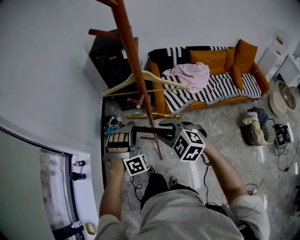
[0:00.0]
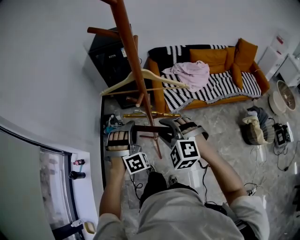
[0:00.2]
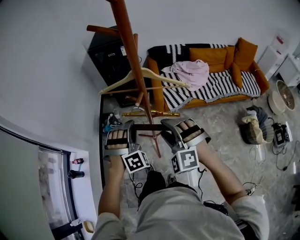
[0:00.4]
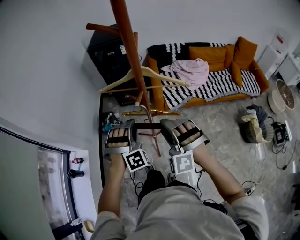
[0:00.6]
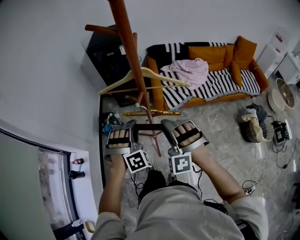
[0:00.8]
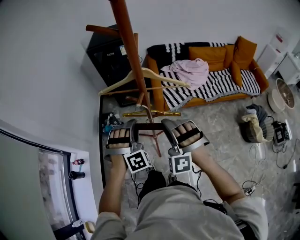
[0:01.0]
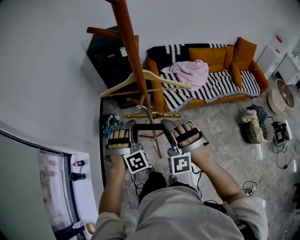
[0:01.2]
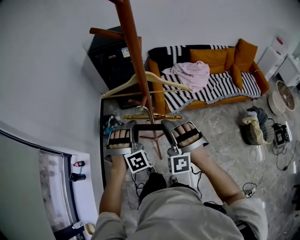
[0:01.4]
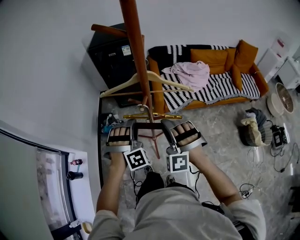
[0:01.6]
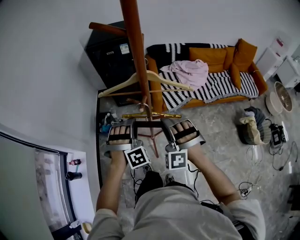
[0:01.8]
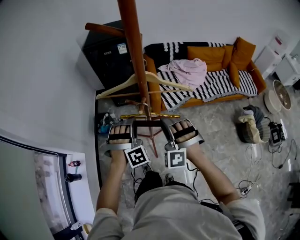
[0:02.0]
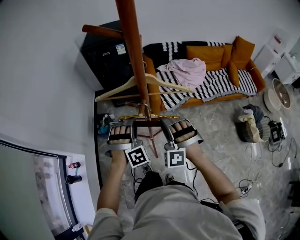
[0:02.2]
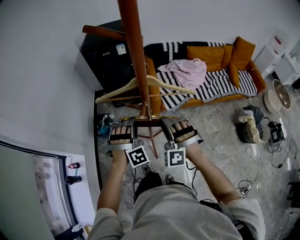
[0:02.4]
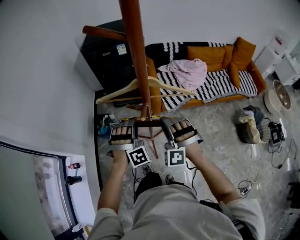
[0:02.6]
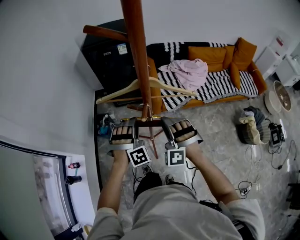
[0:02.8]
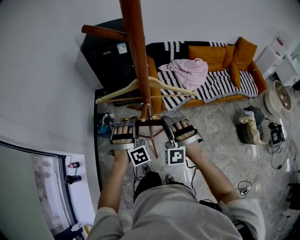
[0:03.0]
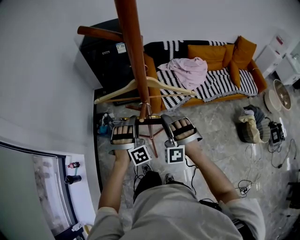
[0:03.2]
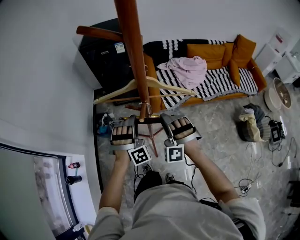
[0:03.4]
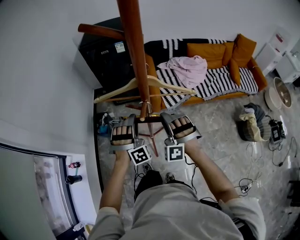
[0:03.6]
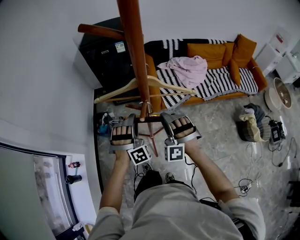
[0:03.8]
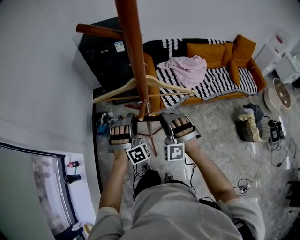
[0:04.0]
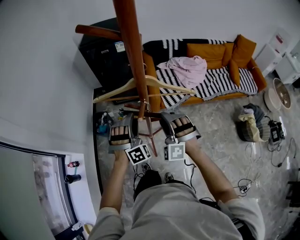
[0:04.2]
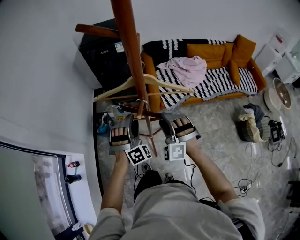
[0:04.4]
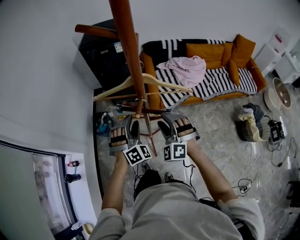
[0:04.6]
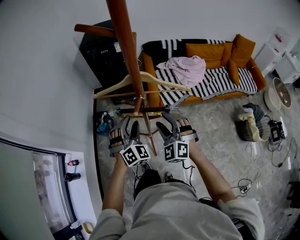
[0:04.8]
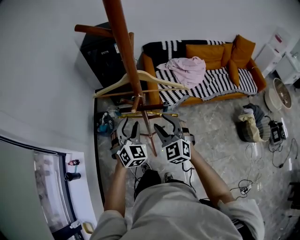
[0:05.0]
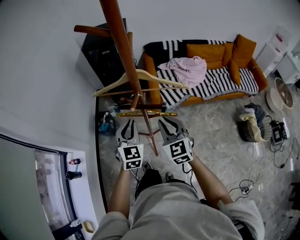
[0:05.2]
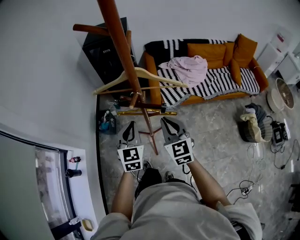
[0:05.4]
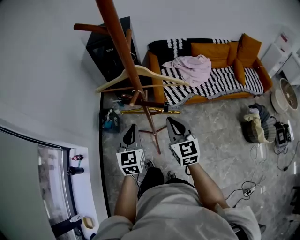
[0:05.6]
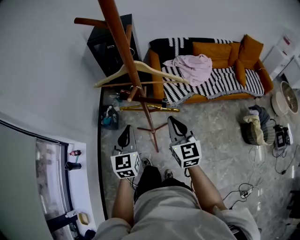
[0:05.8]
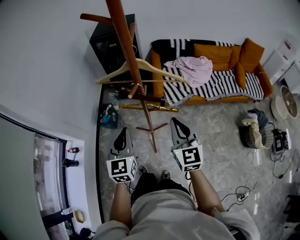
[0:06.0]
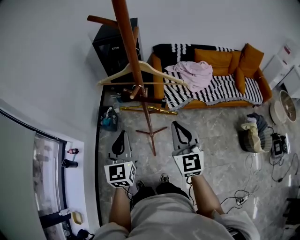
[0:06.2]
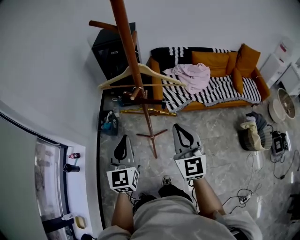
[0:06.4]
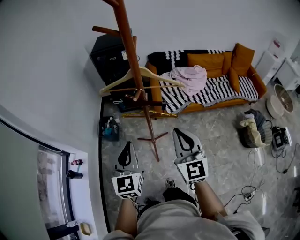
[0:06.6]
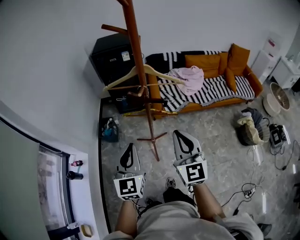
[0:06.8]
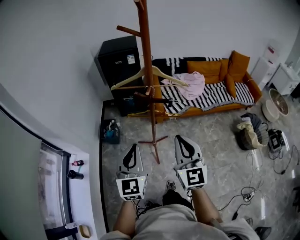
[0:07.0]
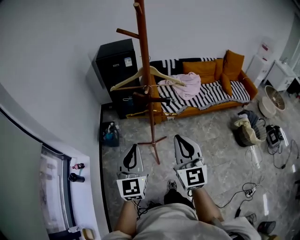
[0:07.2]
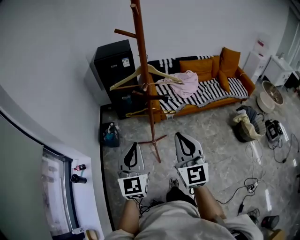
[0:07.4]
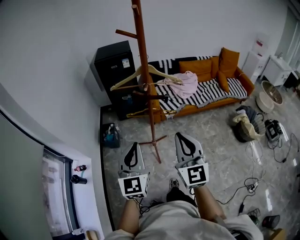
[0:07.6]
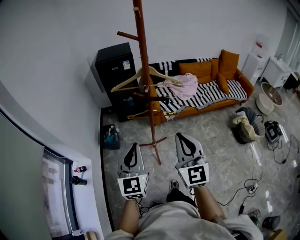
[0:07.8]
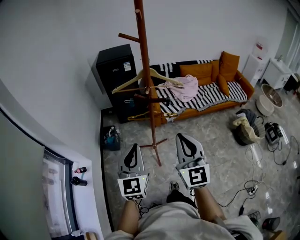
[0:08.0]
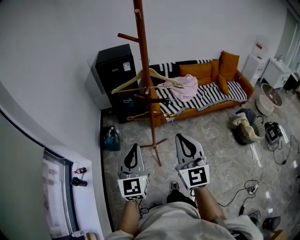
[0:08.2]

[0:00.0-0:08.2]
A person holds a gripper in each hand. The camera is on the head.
0:00.0 to 0:01.6: The right gripper rotates some 50 degrees.
0:01.6 to 0:03.2: The right gripper moves forward and downward, approximately 10 cm. Meanwhile the left gripper shifts roughly 5 cm forward.
0:03.2 to 0:05.0: The left gripper rotates around the line of its fingers by some 50 degrees, counterclockwise from behind; the right gripper rolls clockwise, seen from behind, by about 50 degrees.
0:05.0 to 0:06.6: Both grippers travel together backward and upward, approximately 20 cm. The left gripper turns by some 40 degrees, and closes its fingers, while the right gripper changes its angle by some 30 degrees, and closes its fingers.
0:06.6 to 0:08.2: The left gripper shifts roughly 10 cm backward and upward, while the right gripper is displaced backward, to the left and upward by some 15 cm.

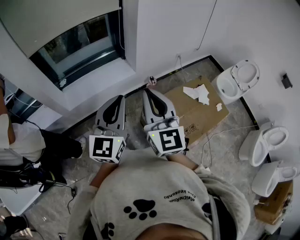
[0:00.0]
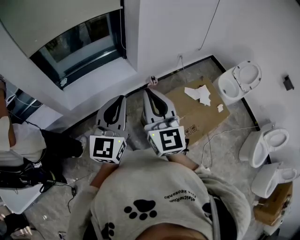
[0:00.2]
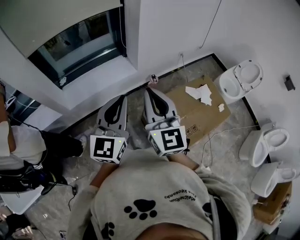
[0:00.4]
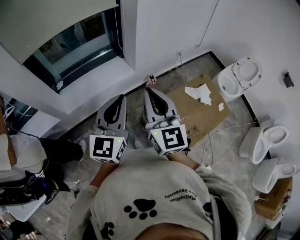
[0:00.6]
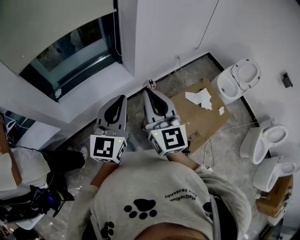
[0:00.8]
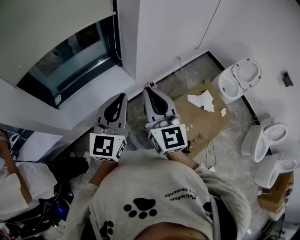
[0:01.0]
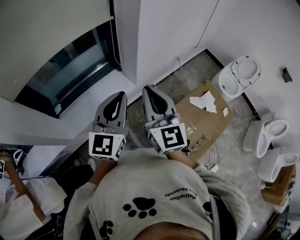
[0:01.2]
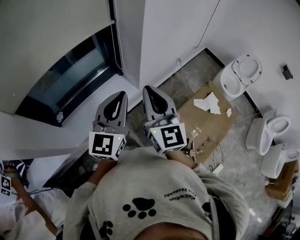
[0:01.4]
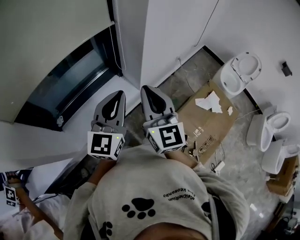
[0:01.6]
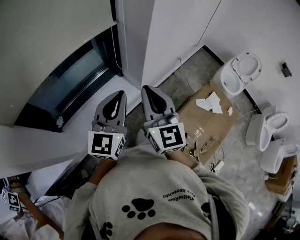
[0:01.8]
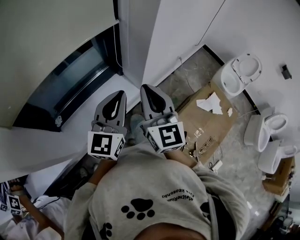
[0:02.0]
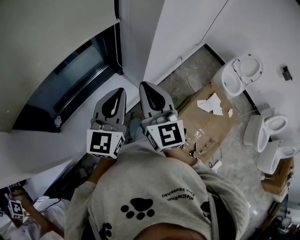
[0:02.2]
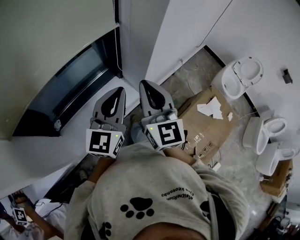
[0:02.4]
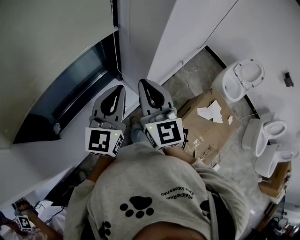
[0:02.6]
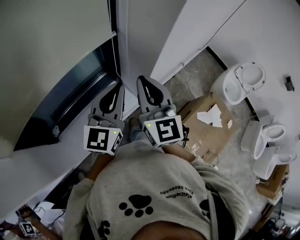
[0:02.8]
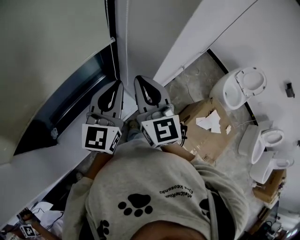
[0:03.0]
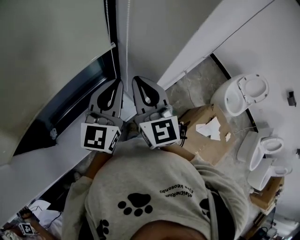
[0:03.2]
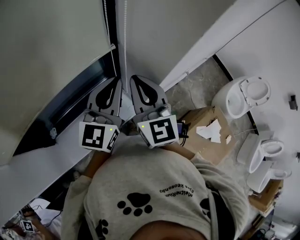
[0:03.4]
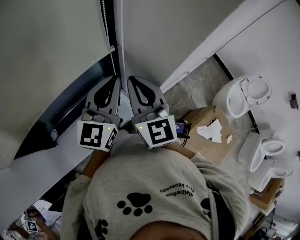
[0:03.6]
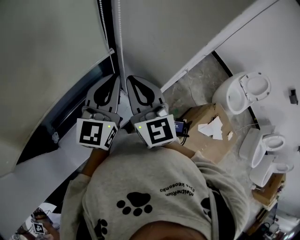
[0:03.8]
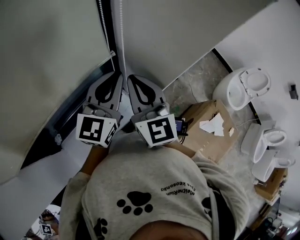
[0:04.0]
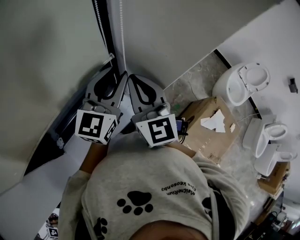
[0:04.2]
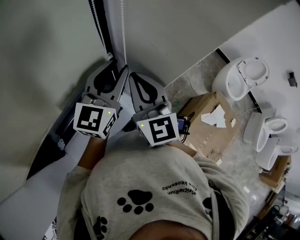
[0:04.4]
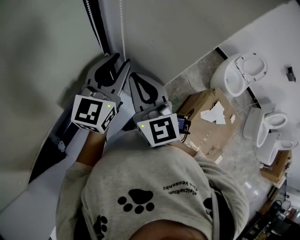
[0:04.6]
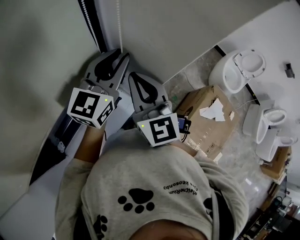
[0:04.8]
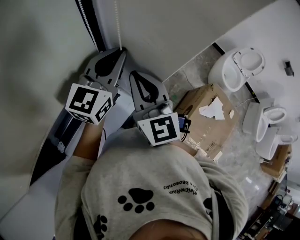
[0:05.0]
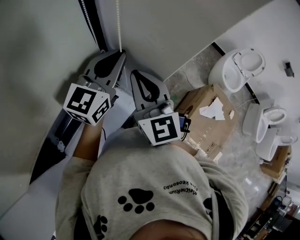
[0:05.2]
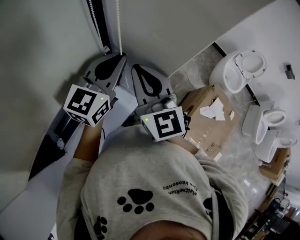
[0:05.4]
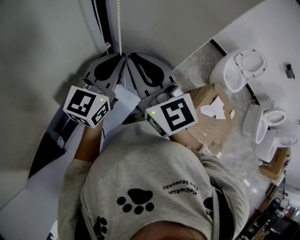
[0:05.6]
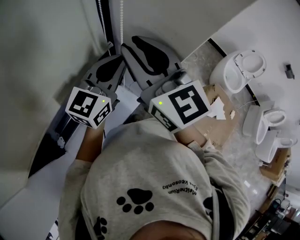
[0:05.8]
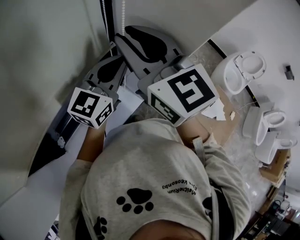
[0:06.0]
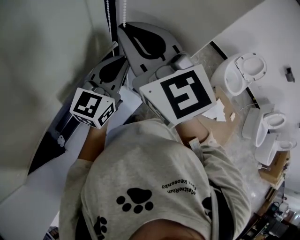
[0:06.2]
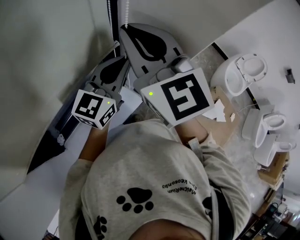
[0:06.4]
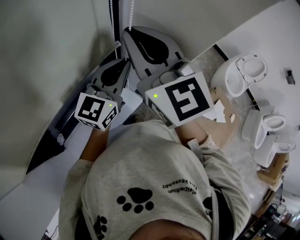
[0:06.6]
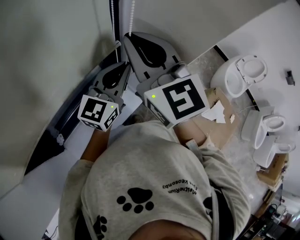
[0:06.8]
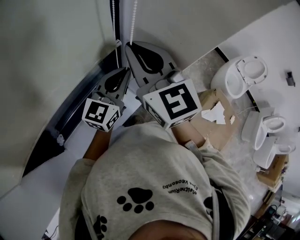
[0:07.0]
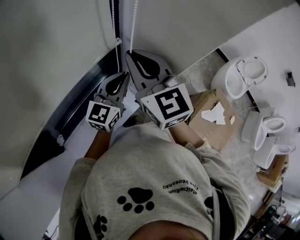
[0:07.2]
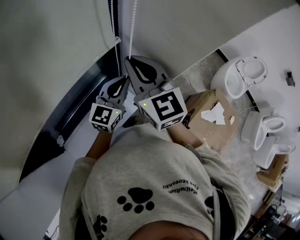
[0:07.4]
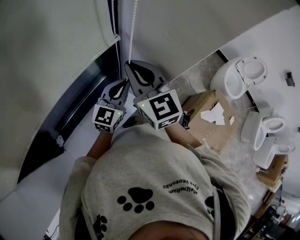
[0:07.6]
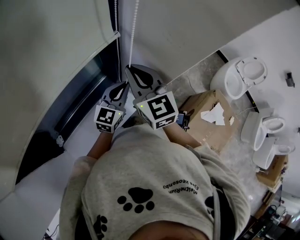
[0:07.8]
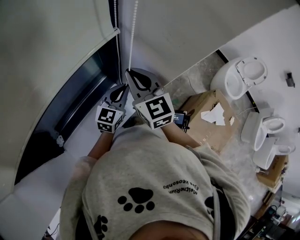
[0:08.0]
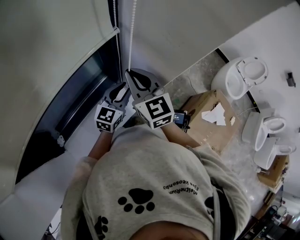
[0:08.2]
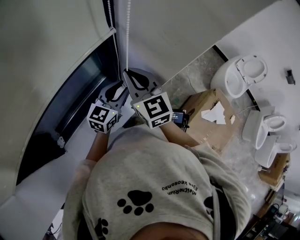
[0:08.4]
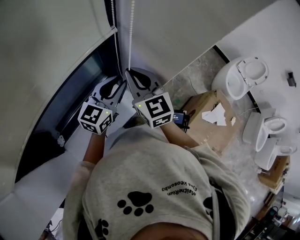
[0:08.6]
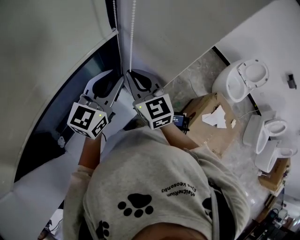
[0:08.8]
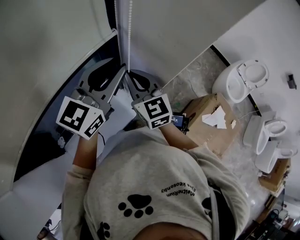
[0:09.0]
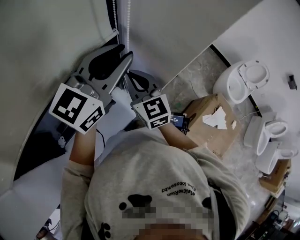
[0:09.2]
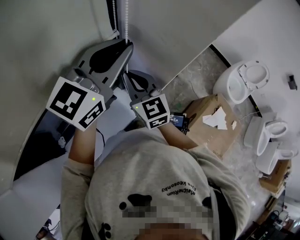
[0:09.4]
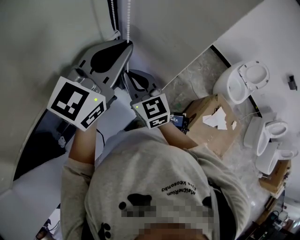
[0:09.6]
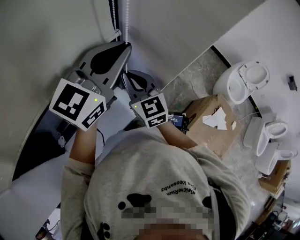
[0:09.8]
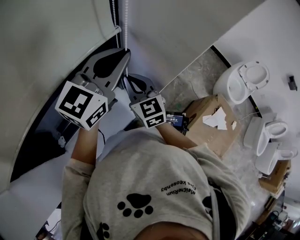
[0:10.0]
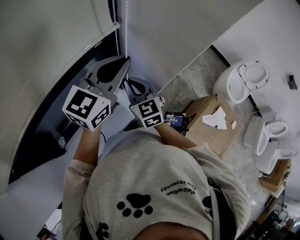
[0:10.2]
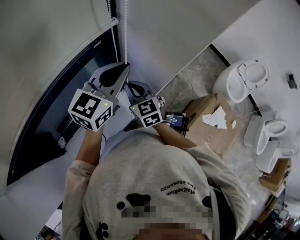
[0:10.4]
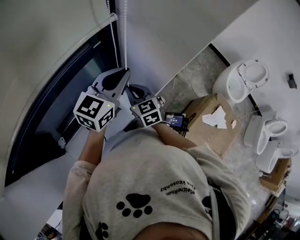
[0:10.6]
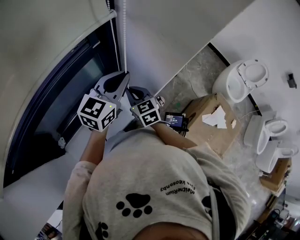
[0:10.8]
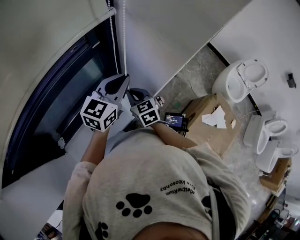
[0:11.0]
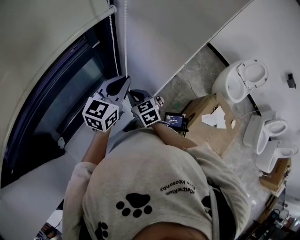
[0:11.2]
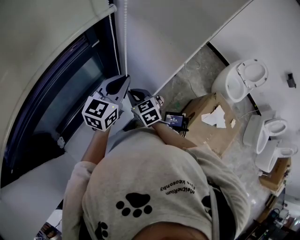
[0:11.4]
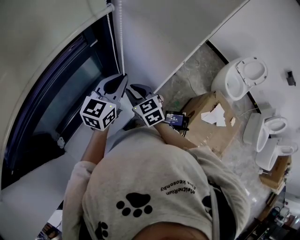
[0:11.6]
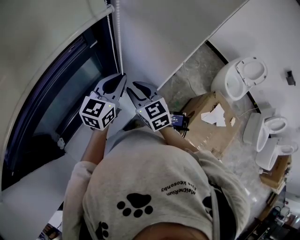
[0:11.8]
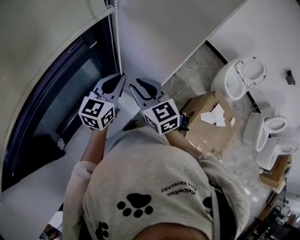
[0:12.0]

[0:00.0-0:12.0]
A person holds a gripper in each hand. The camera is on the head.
0:00.0 to 0:01.6: Both grippers travel together forward, about 30 cm.
0:01.6 to 0:03.0: Both grippers move forward, roughly 20 cm.
0:03.0 to 0:04.4: The left gripper is displaced forward by about 10 cm, and opens. The right gripper heads forward, covering approximately 10 cm.
0:04.4 to 0:06.0: The right gripper heads upward, covering some 10 cm. Meanwhile the left gripper closes up.
0:06.0 to 0:07.6: Both grippers travel together downward, approximately 15 cm.
0:07.6 to 0:09.0: The right gripper travels downward by roughly 5 cm; the left gripper goes some 15 cm upward, and opens its fingers.
0:09.0 to 0:10.4: The right gripper moves downward, roughly 10 cm, while the left gripper closes up.
0:10.4 to 0:12.0: The left gripper travels downward by about 10 cm; the right gripper goes some 5 cm upward, and opens up.

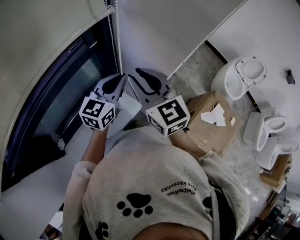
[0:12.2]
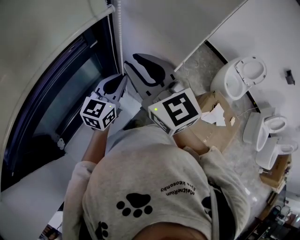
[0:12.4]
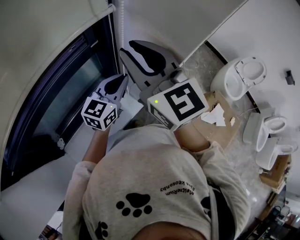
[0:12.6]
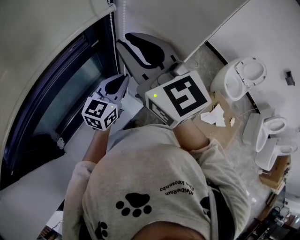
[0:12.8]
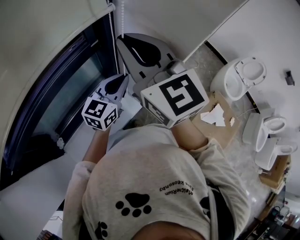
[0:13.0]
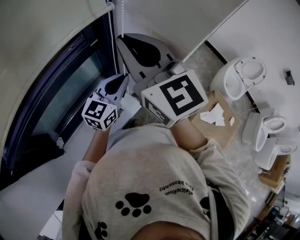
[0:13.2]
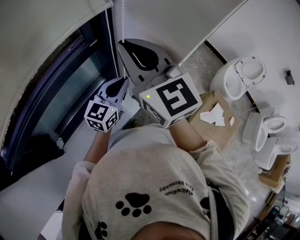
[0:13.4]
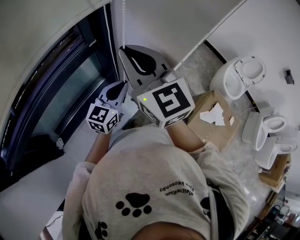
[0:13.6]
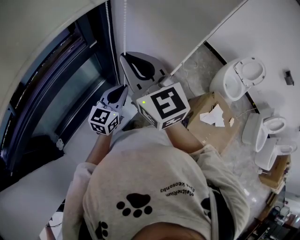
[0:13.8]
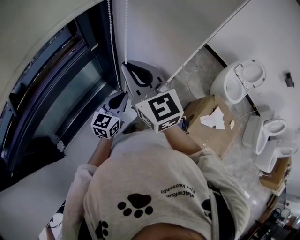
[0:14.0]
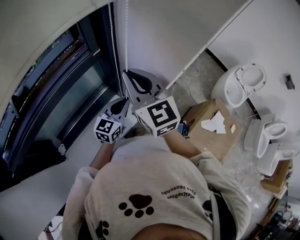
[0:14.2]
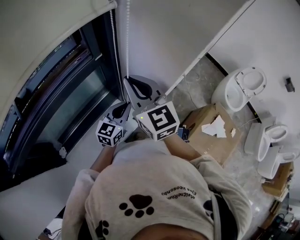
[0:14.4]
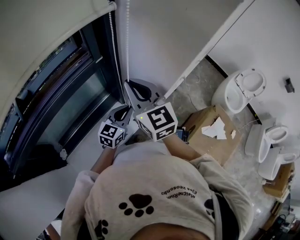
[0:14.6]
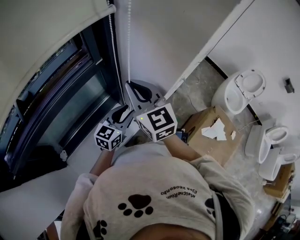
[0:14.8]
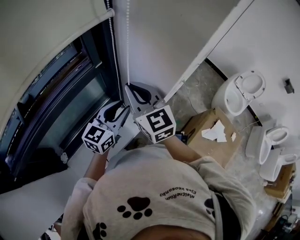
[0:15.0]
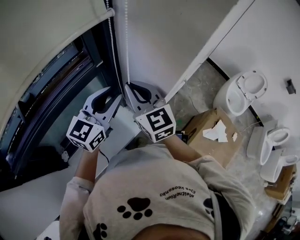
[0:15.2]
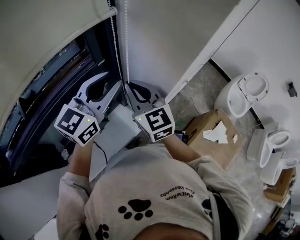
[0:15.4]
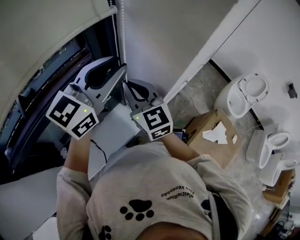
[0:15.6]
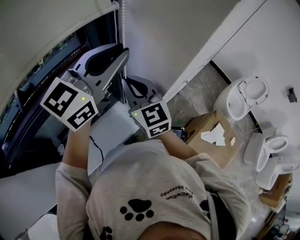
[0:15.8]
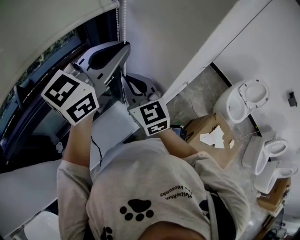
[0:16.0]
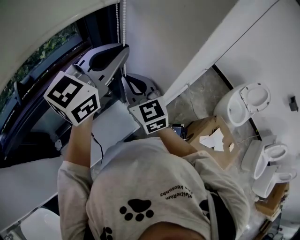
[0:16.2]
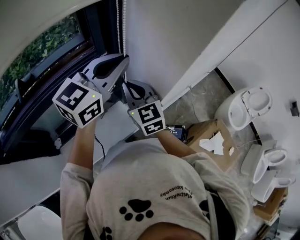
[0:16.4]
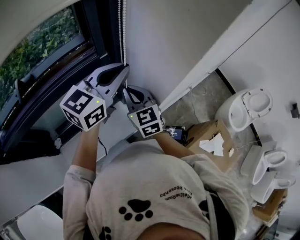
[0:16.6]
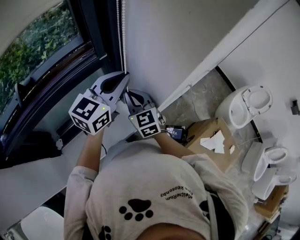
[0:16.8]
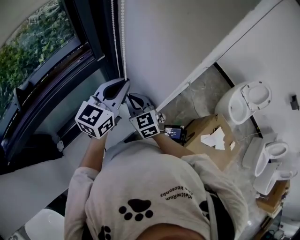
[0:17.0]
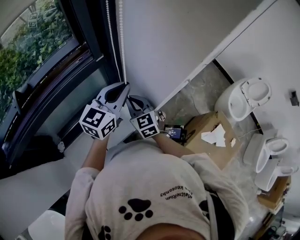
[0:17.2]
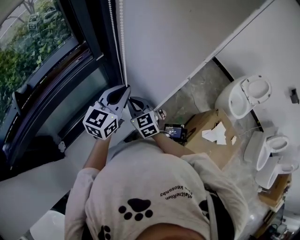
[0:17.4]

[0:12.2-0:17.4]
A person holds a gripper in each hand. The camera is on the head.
0:12.2 to 0:14.0: The left gripper shifts approximately 10 cm downward. Meanwhile the right gripper moves roughly 15 cm upward and comes back, and closes up.
0:14.0 to 0:15.6: The left gripper shifts some 30 cm upward, and opens its fingers.
0:15.6 to 0:17.4: The grippers both shift downward by roughly 20 cm. The left gripper closes its fingers.
